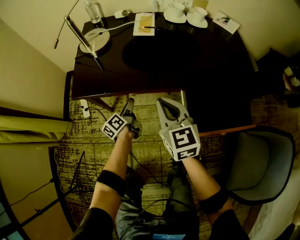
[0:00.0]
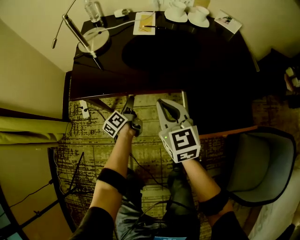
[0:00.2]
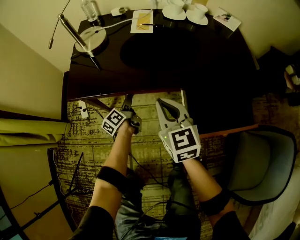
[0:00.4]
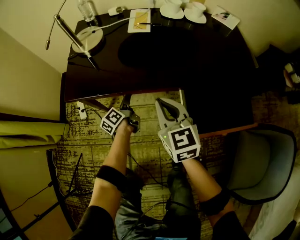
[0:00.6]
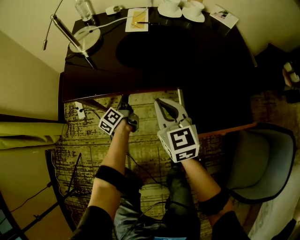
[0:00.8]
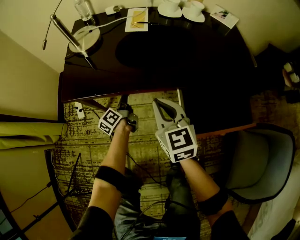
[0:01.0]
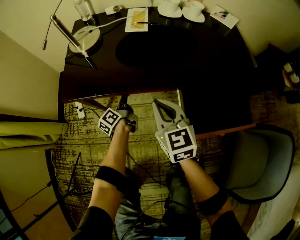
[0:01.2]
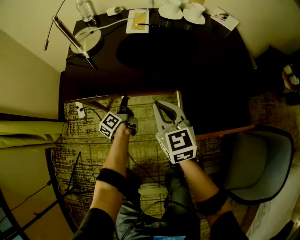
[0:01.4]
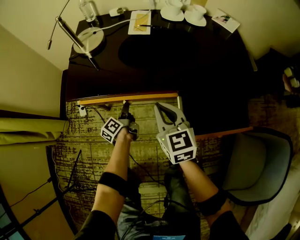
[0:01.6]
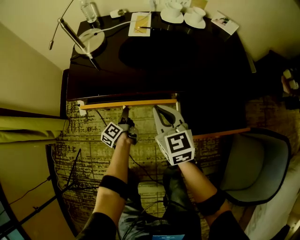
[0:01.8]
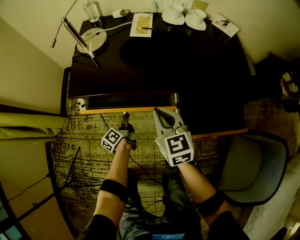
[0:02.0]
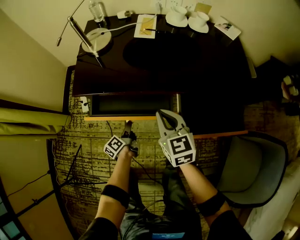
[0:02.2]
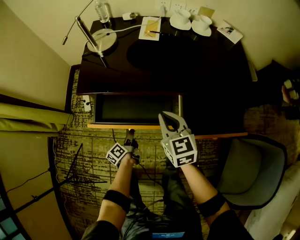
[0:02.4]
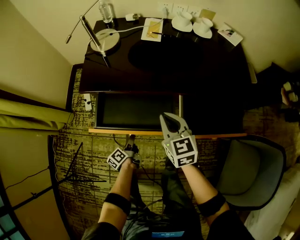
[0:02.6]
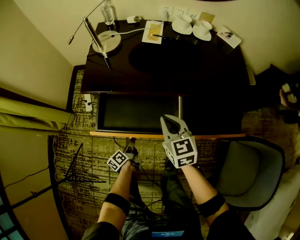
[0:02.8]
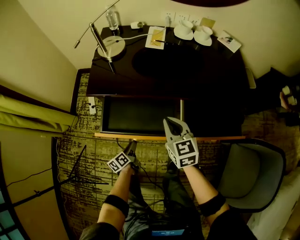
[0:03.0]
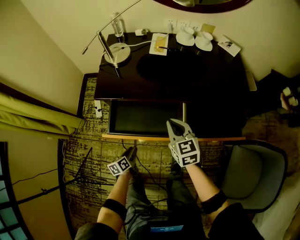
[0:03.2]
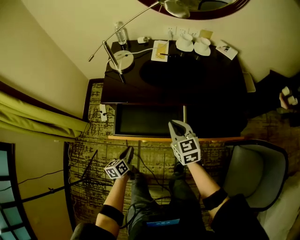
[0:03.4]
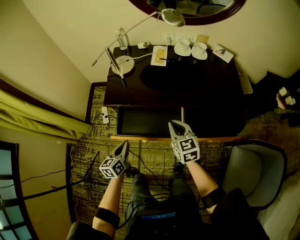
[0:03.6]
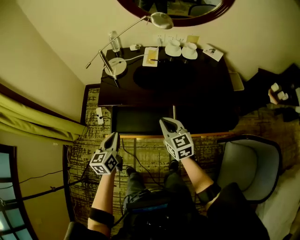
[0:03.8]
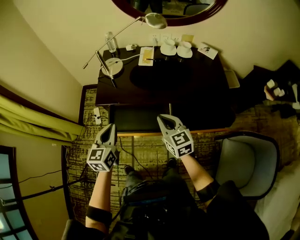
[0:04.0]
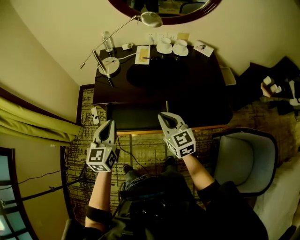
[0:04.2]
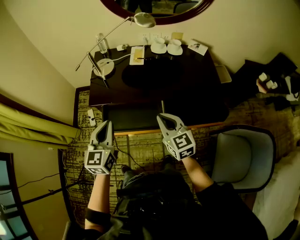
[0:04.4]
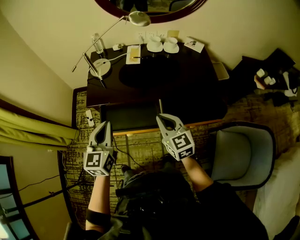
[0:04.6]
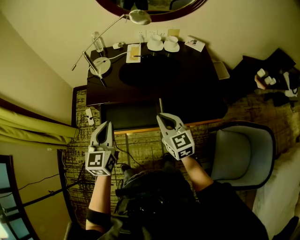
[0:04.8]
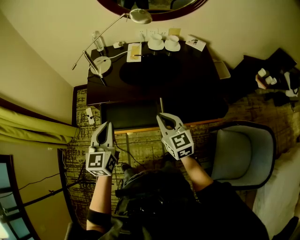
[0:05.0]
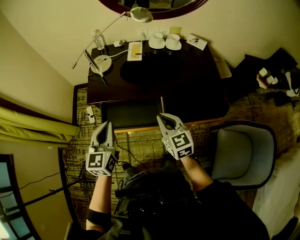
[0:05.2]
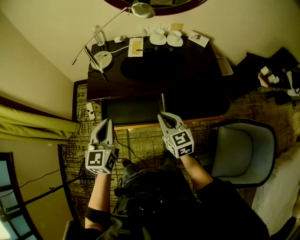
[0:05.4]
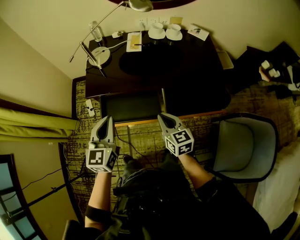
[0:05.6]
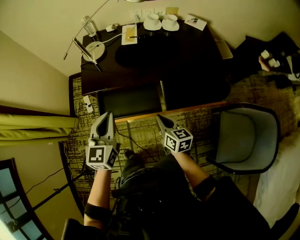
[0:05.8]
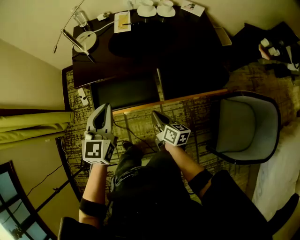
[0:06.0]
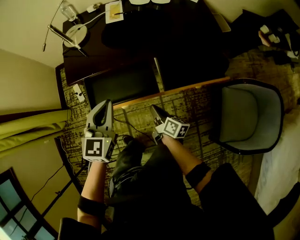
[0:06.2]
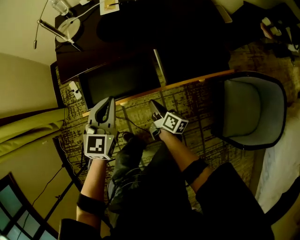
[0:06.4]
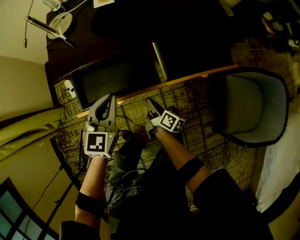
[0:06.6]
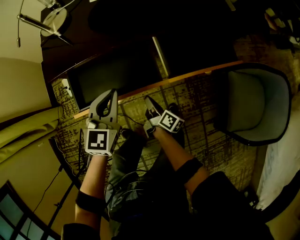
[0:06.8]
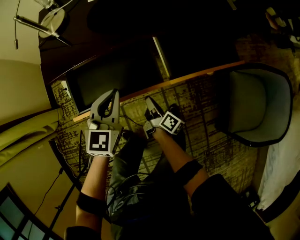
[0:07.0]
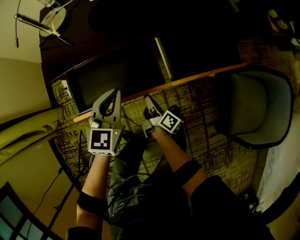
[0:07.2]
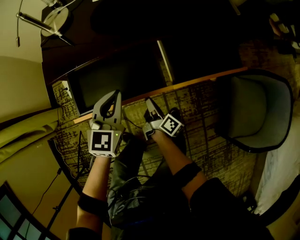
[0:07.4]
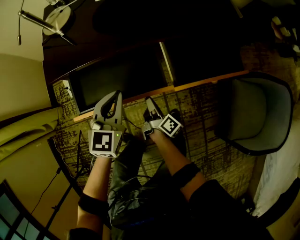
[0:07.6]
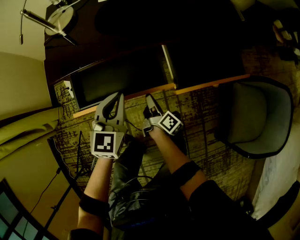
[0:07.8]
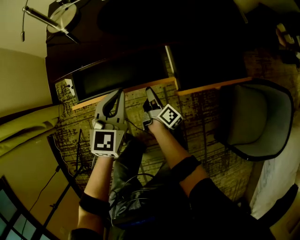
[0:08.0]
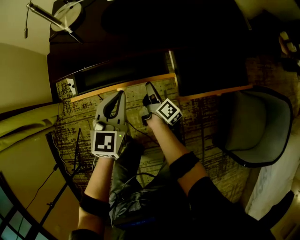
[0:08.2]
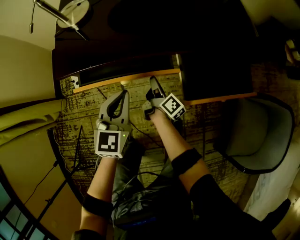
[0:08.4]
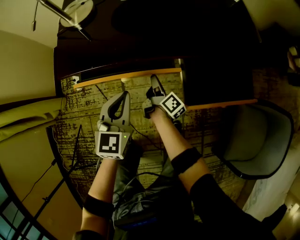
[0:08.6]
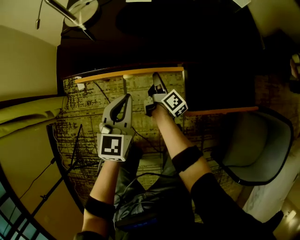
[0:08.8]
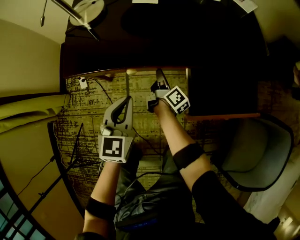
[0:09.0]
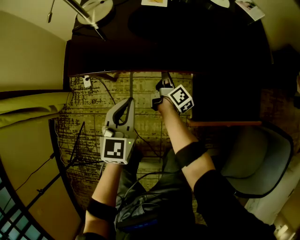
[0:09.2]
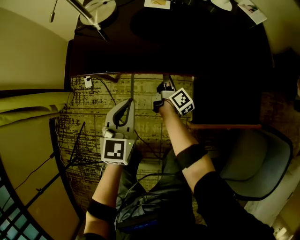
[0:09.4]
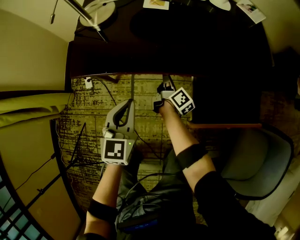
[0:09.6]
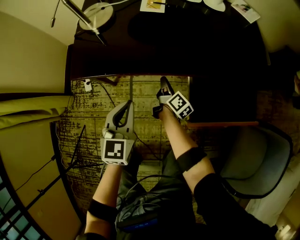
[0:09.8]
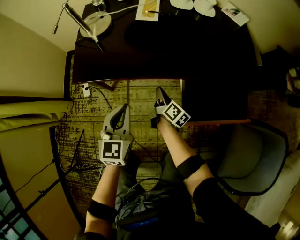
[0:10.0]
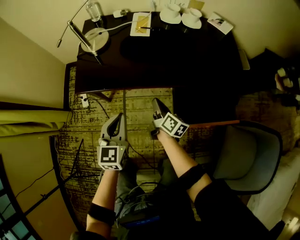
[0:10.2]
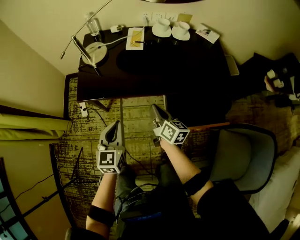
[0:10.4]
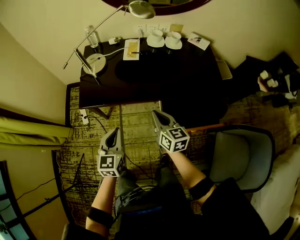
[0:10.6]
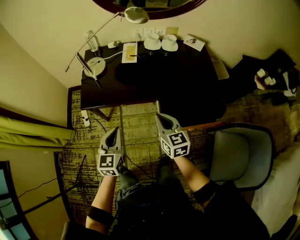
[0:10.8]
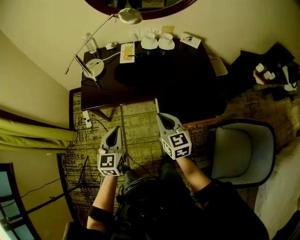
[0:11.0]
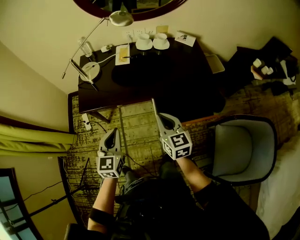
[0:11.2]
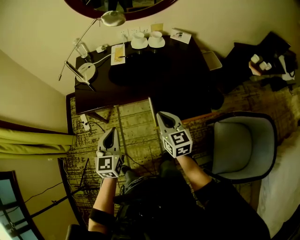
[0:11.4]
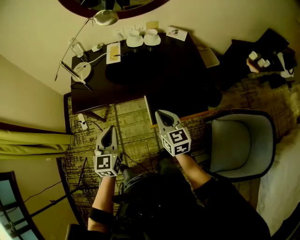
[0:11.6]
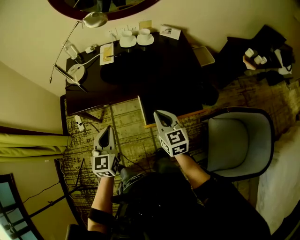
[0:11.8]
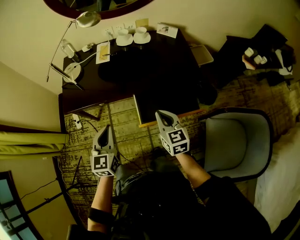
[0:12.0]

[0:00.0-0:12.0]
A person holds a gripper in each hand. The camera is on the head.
0:00.0 to 0:01.6: The left gripper closes up.
0:01.6 to 0:03.0: The left gripper moves backward, some 20 cm. Meanwhile the right gripper goes approximately 5 cm backward.
0:03.0 to 0:04.4: The right gripper shifts some 20 cm upward. The left gripper heads upward, covering about 50 cm, rotates around the line of its fingers by approximately 60 degrees, clockwise from behind, and closes.
0:04.4 to 0:06.0: The left gripper travels downward by roughly 5 cm; the right gripper moves downward, some 20 cm, and rolls clockwise, seen from behind, by about 50 degrees.
0:06.0 to 0:07.6: The two grippers go roughly 20 cm downward. The right gripper turns by about 40 degrees.
0:07.6 to 0:09.0: The left gripper travels forward by approximately 5 cm; the right gripper shifts about 20 cm forward.
0:09.0 to 0:10.4: The left gripper shifts approximately 10 cm upward. Meanwhile the right gripper heads upward, covering about 25 cm, and swivels approximately 40 degrees.
0:10.4 to 0:12.0: The left gripper is displaced to the right, upward and backward by roughly 20 cm. The right gripper travels to the right, backward and upward by about 25 cm, and changes its angle by approximately 40 degrees.

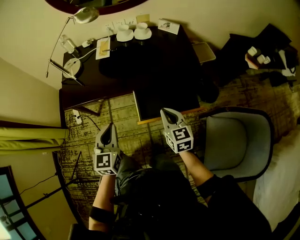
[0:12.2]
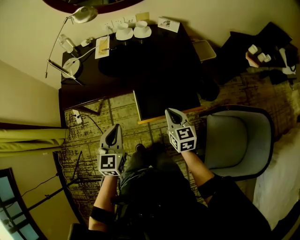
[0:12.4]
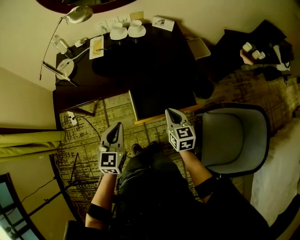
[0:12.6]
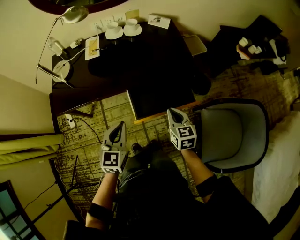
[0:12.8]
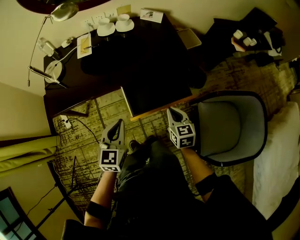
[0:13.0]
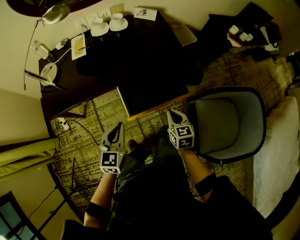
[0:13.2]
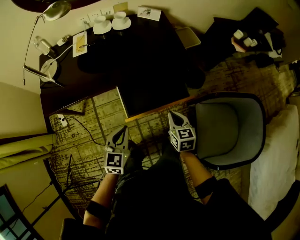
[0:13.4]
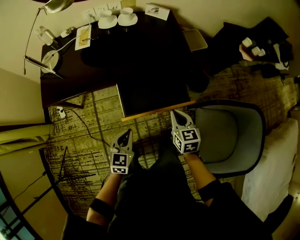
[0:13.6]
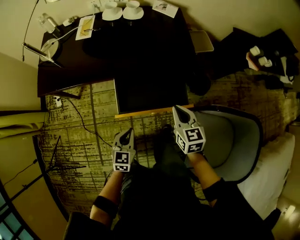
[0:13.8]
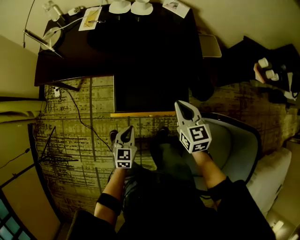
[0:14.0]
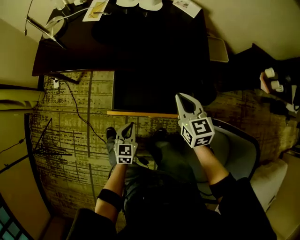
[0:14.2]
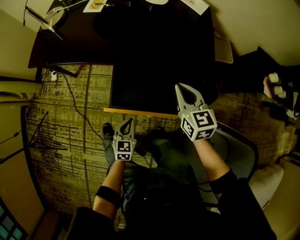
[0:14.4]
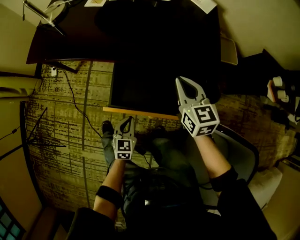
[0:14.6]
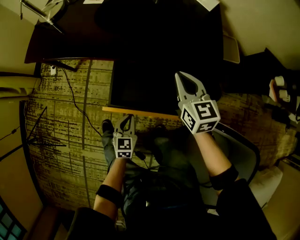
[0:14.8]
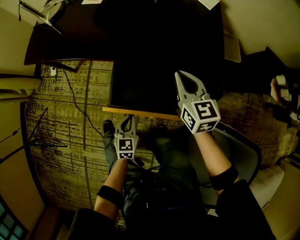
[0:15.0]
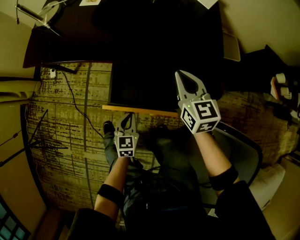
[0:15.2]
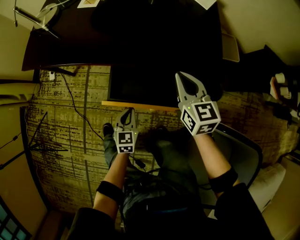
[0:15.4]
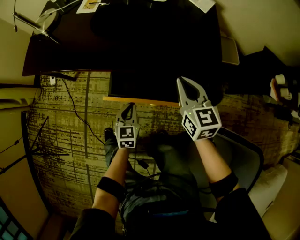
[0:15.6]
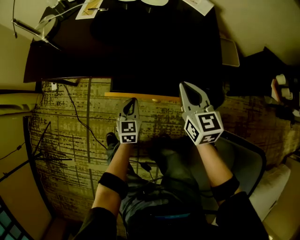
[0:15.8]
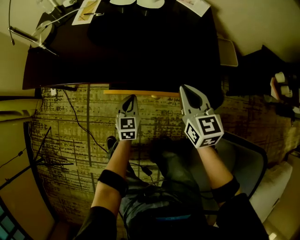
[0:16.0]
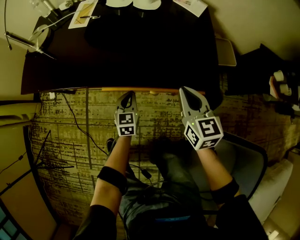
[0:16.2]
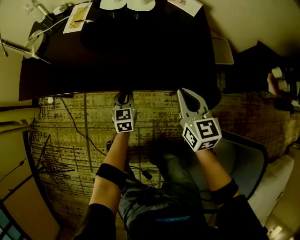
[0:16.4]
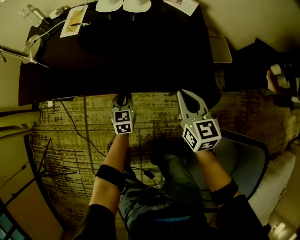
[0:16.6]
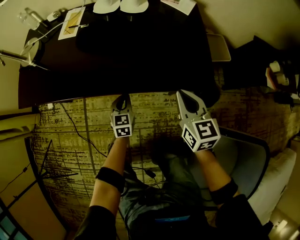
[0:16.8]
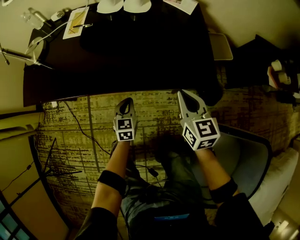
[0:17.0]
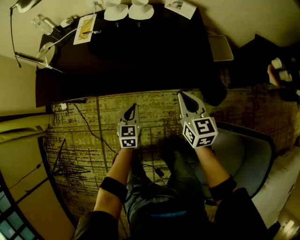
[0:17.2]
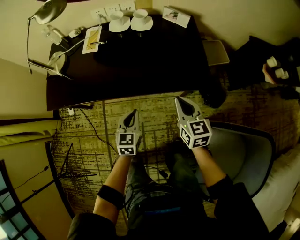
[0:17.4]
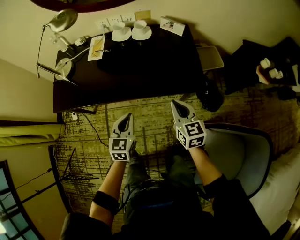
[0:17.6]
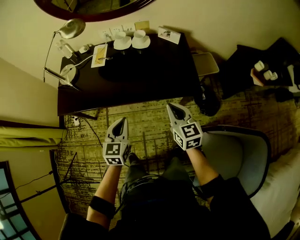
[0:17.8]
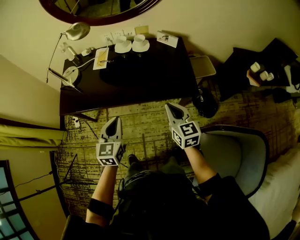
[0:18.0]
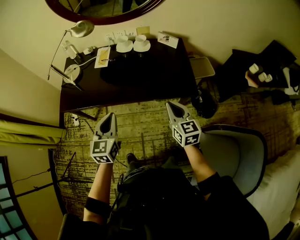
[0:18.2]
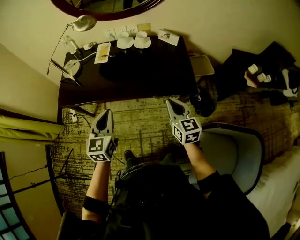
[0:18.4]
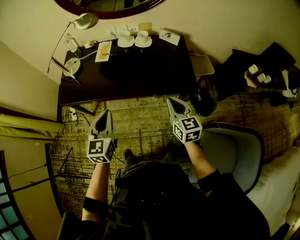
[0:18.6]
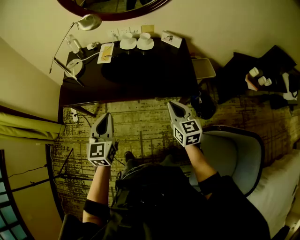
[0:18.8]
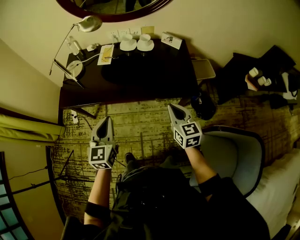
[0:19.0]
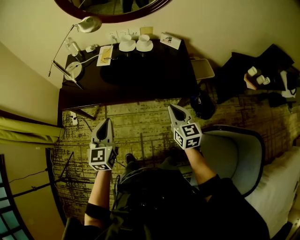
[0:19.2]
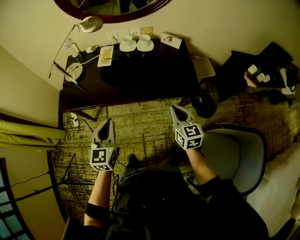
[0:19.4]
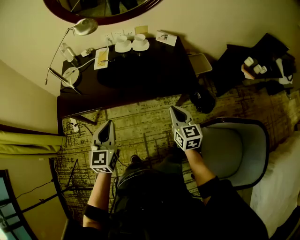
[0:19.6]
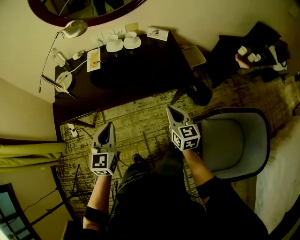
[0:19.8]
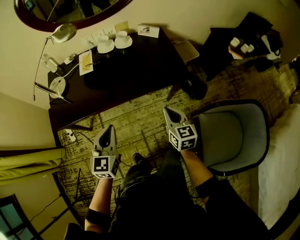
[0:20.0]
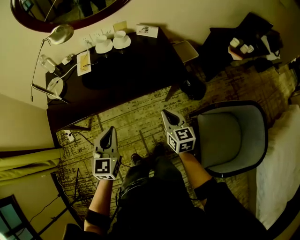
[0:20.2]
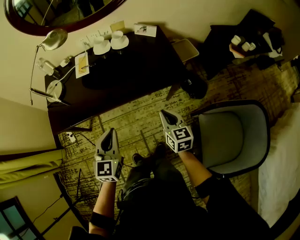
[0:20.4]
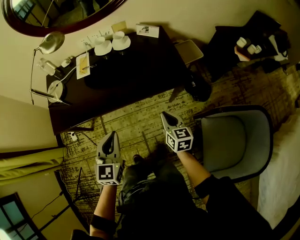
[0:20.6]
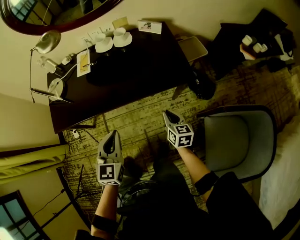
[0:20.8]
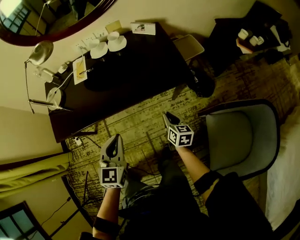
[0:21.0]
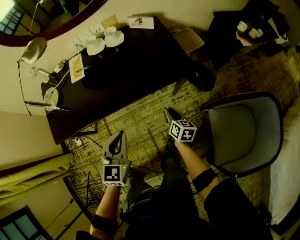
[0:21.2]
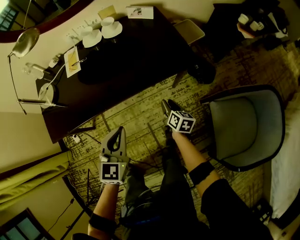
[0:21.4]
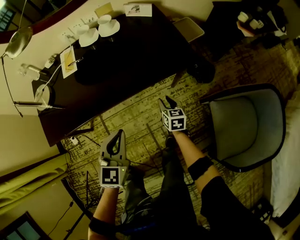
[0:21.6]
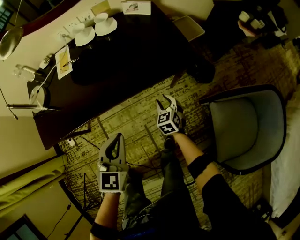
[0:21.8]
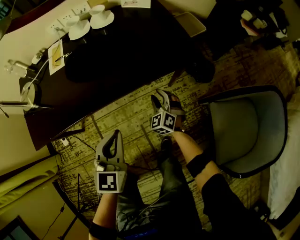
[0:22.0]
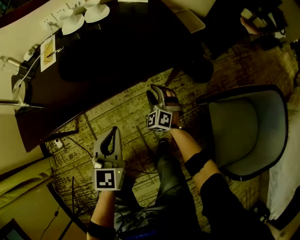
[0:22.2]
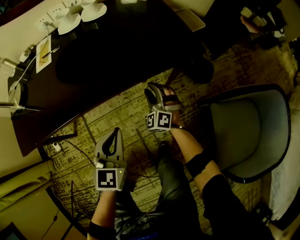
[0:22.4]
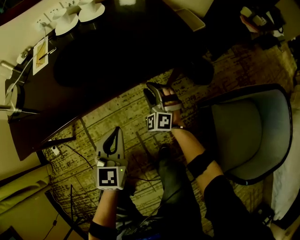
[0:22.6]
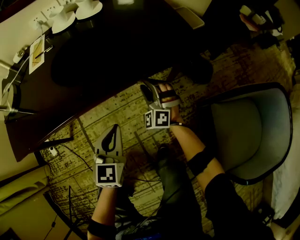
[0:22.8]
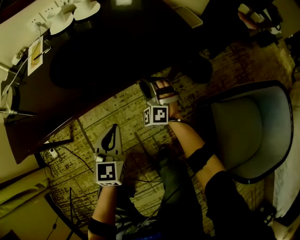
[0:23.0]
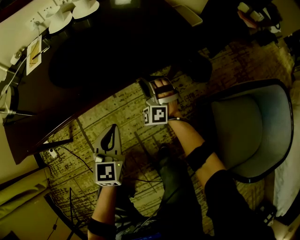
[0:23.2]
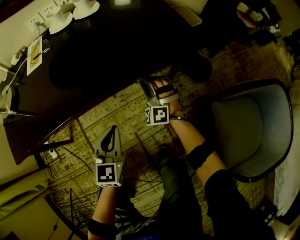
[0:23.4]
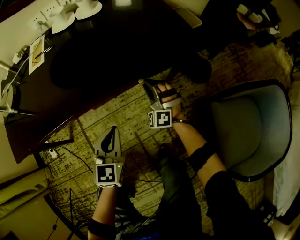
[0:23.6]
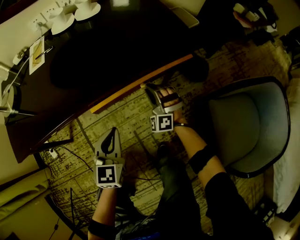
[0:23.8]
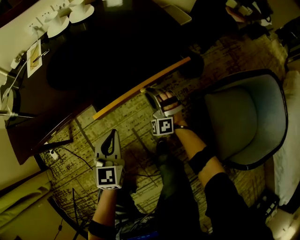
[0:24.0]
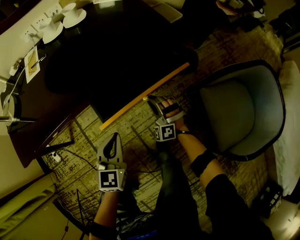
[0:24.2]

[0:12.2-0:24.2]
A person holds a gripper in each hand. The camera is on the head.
0:12.2 to 0:13.8: The left gripper is displaced downward and to the right by roughly 25 cm; the right gripper goes some 15 cm to the right and downward.
0:13.8 to 0:15.2: The left gripper goes roughly 20 cm downward and forward, while the right gripper goes about 15 cm forward.
0:15.2 to 0:16.6: The left gripper is displaced forward by approximately 25 cm. The right gripper goes some 5 cm to the right.
0:16.6 to 0:18.2: The left gripper shifts roughly 40 cm upward and backward, while the right gripper is displaced upward and backward by roughly 25 cm.
0:18.2 to 0:19.8: Both grippers travel together to the left, some 5 cm.
0:19.8 to 0:21.2: The right gripper shifts roughly 20 cm downward, changes its angle by about 30 degrees, and opens; the left gripper is displaced to the right and downward by some 10 cm.
0:21.2 to 0:22.6: The left gripper goes roughly 25 cm downward; the right gripper shifts about 20 cm downward, forward and to the left, and rolls counterclockwise, seen from behind, by roughly 90 degrees.
0:22.6 to 0:24.2: The right gripper is displaced backward by about 10 cm, and closes; the left gripper heads backward, covering approximately 5 cm.
